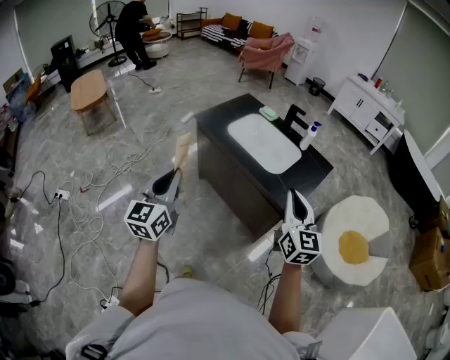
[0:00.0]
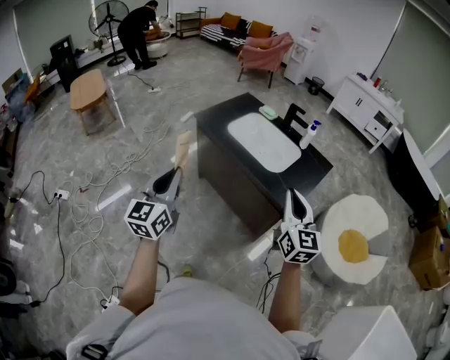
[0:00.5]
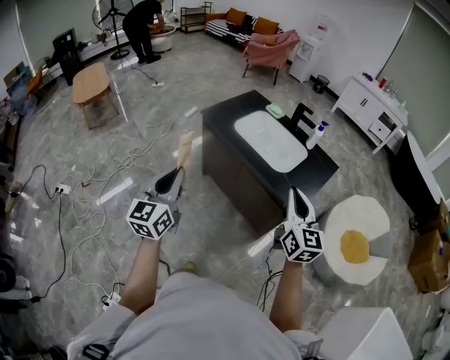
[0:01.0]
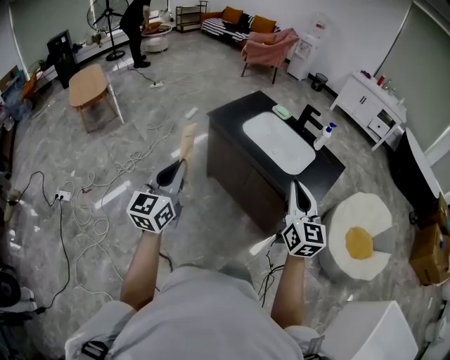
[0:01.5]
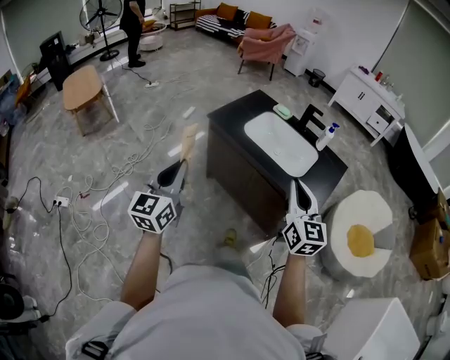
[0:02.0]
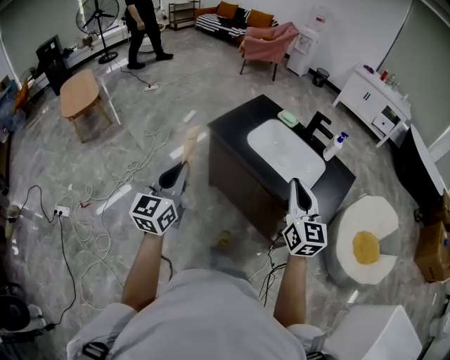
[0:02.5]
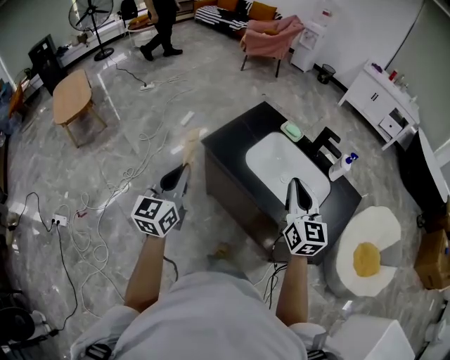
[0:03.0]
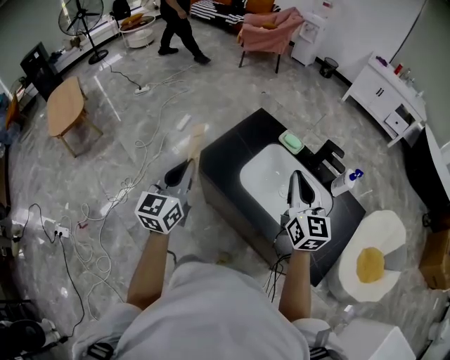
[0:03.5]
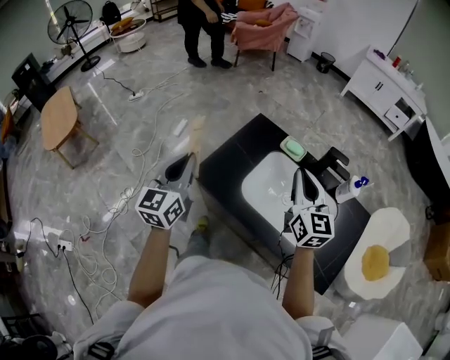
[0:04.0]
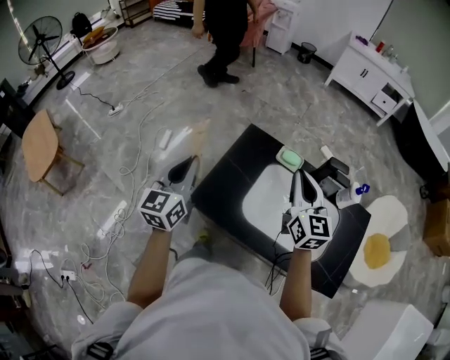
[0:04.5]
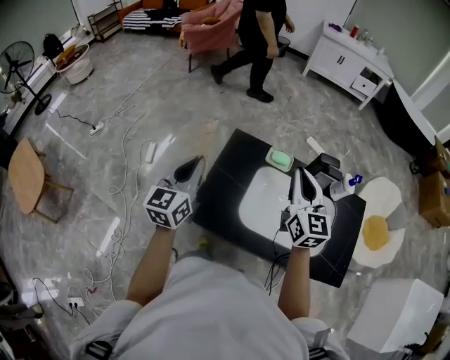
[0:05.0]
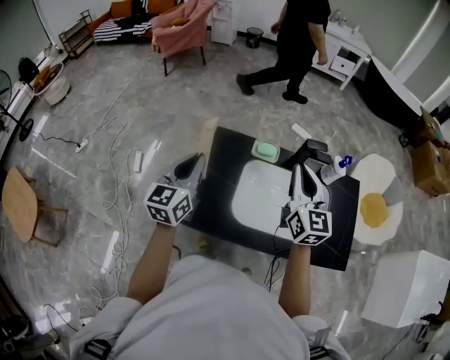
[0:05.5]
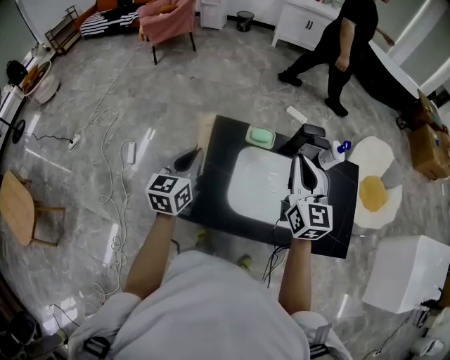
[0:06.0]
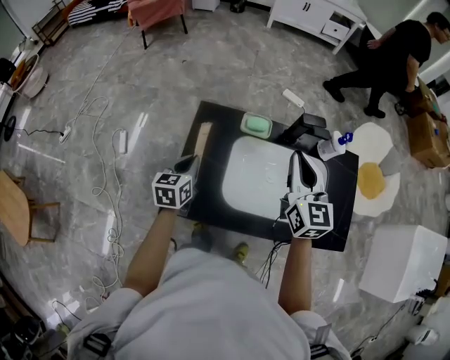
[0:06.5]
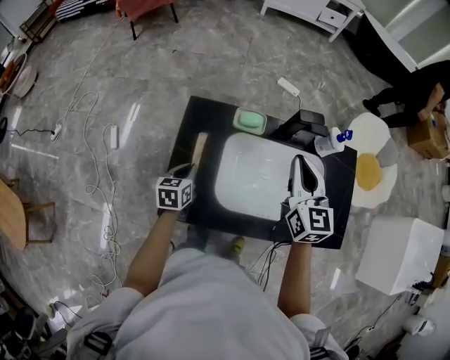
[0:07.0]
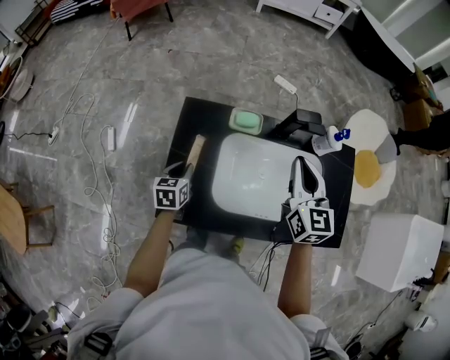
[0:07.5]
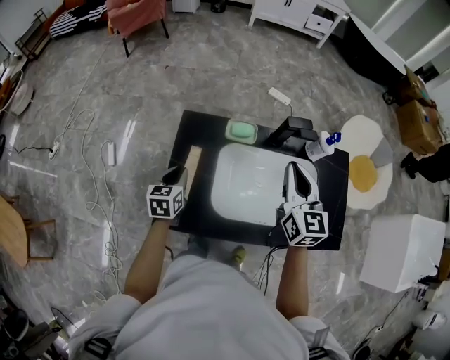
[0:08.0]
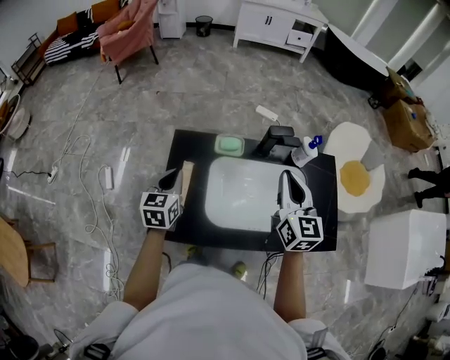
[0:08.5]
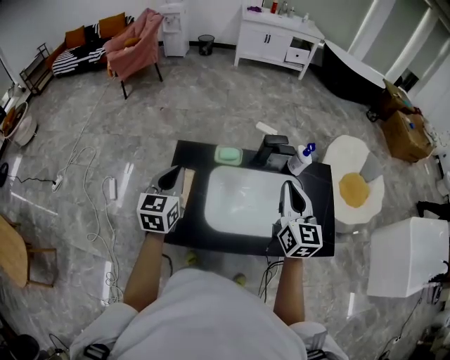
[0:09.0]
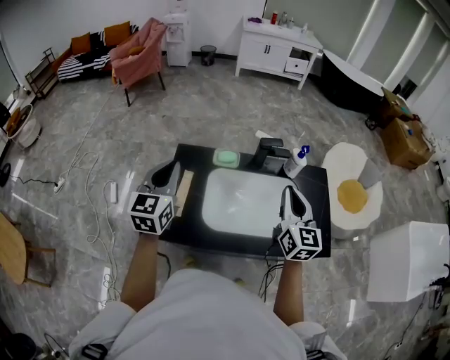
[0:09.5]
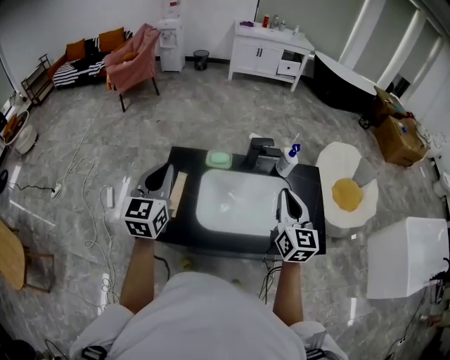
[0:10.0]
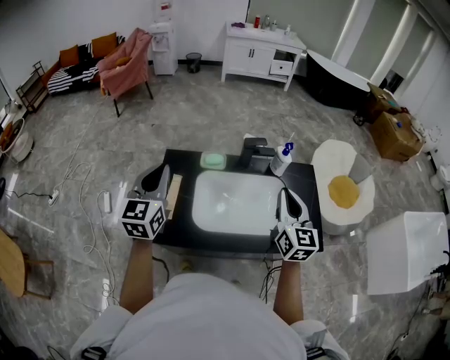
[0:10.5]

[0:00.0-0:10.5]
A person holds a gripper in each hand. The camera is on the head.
0.0 to 2.0 s: The two grippers go about 15 cm to the left and forward.
2.0 to 4.0 s: The two grippers travel together, forward, approximately 50 cm.
4.0 to 6.5 s: The left gripper changes place by approximately 35 cm, and changes its angle by approximately 40 degrees. Meanwhile the right gripper moves some 10 cm, and turns by approximately 30 degrees.
6.5 to 8.5 s: The left gripper is displaced upward by some 5 cm; the right gripper goes some 5 cm to the right.
8.5 to 10.5 s: The right gripper moves backward and to the right, approximately 15 cm. Meanwhile the left gripper goes about 20 cm upward and backward, and turns by approximately 20 degrees.

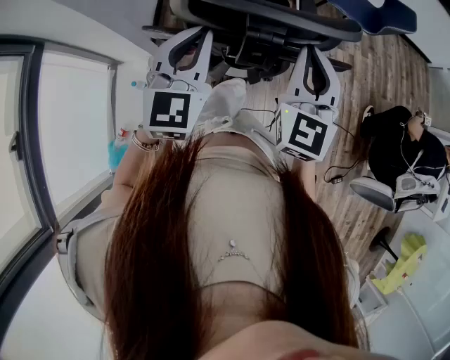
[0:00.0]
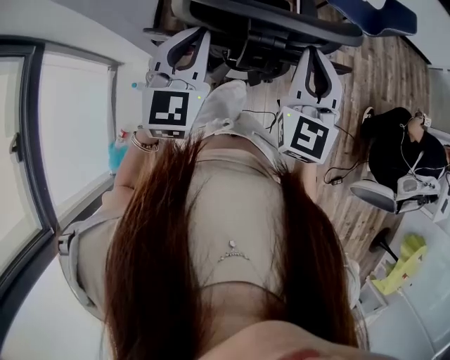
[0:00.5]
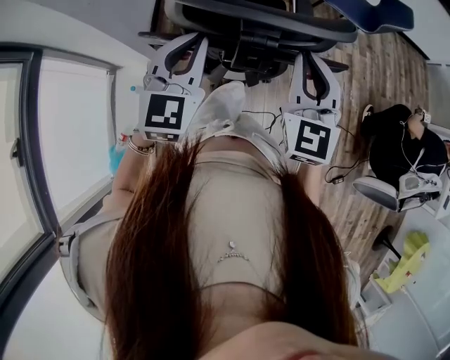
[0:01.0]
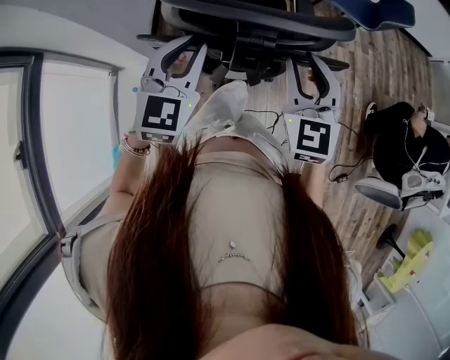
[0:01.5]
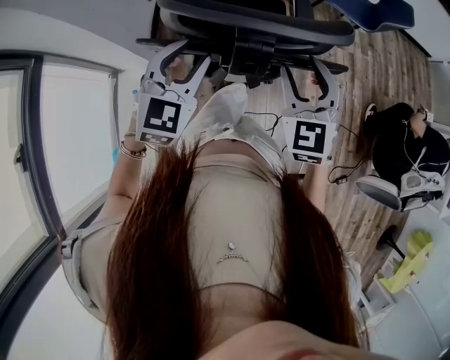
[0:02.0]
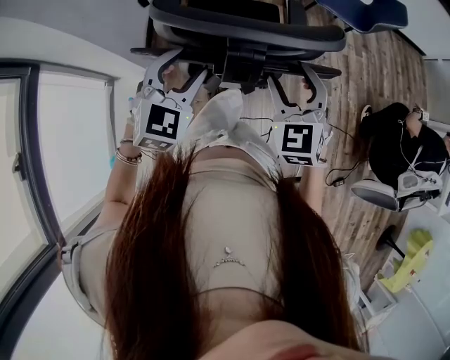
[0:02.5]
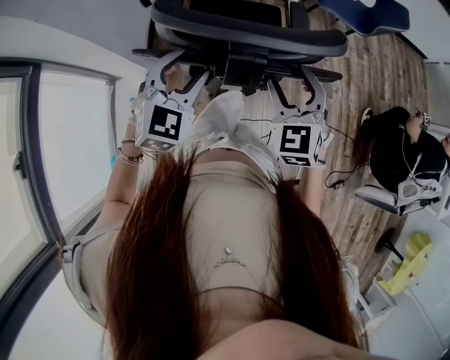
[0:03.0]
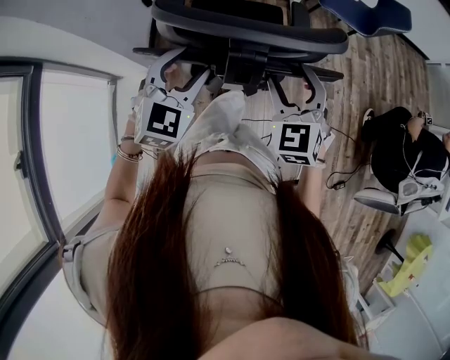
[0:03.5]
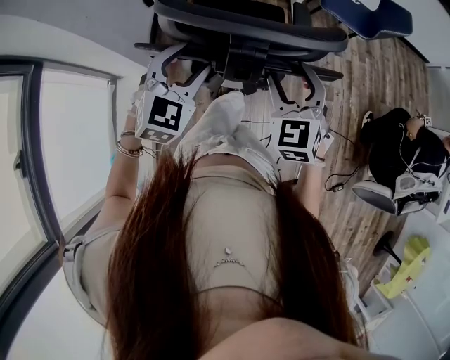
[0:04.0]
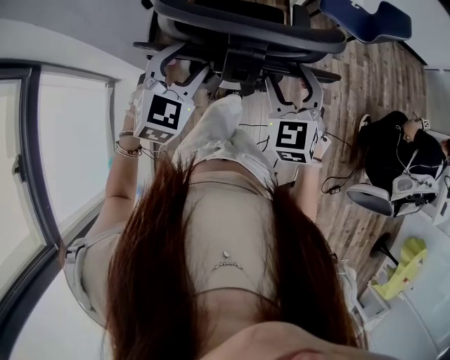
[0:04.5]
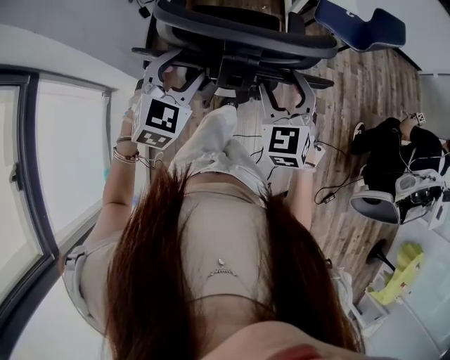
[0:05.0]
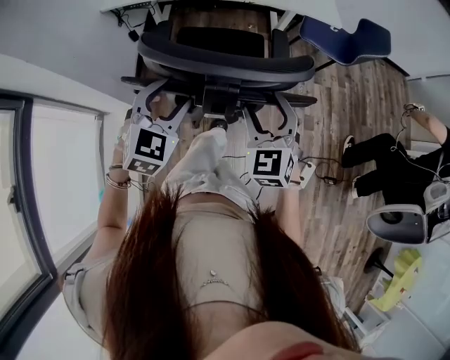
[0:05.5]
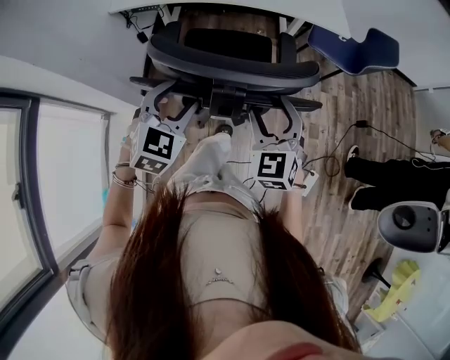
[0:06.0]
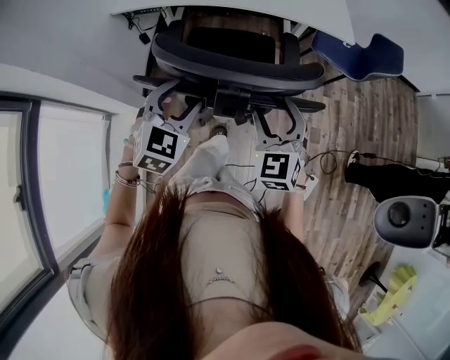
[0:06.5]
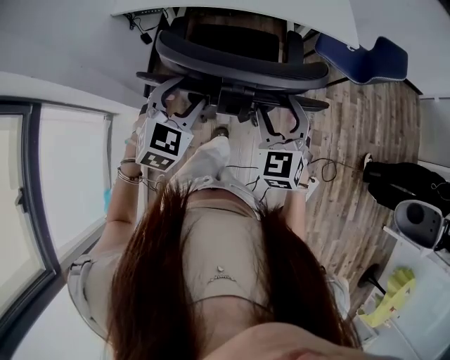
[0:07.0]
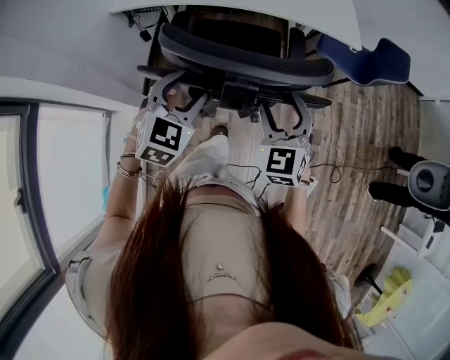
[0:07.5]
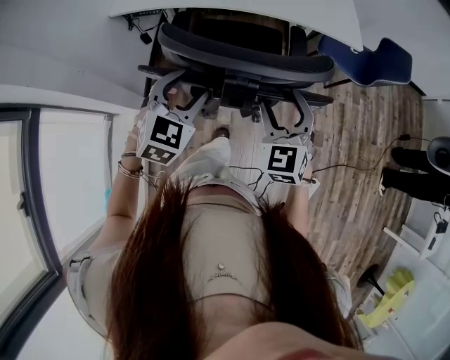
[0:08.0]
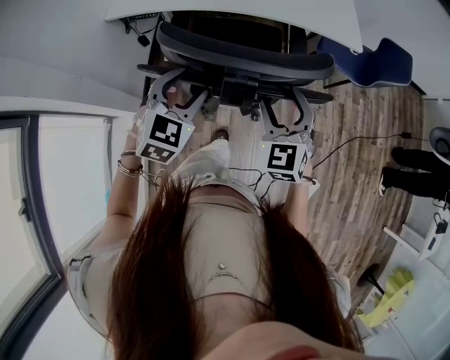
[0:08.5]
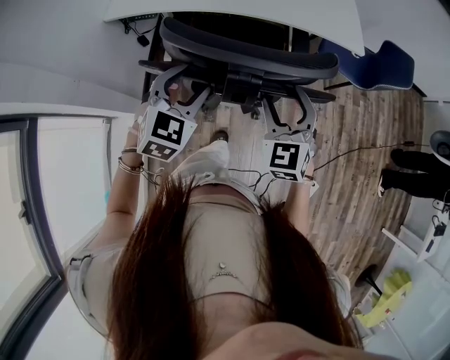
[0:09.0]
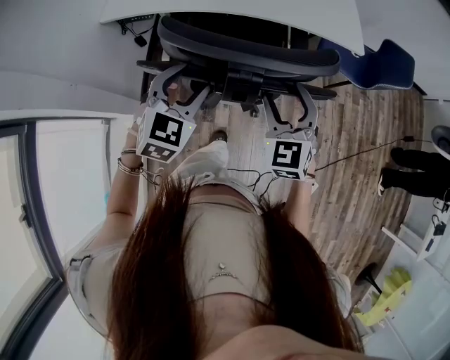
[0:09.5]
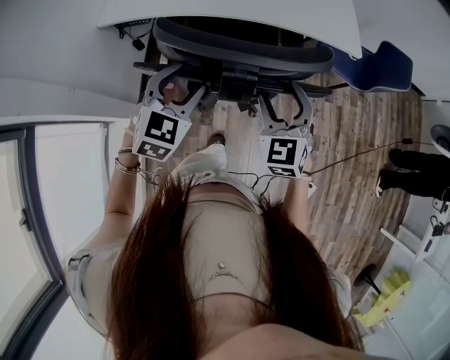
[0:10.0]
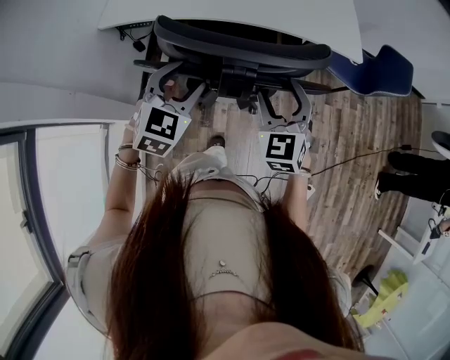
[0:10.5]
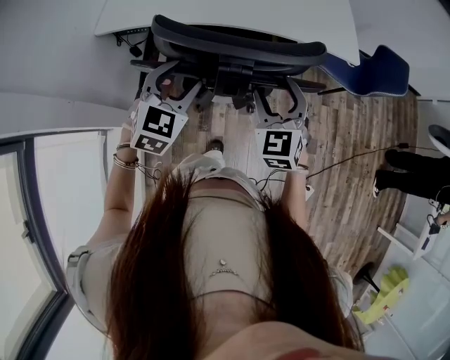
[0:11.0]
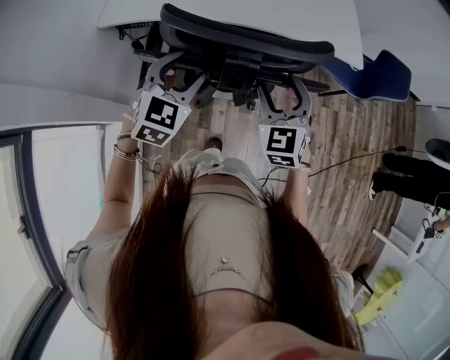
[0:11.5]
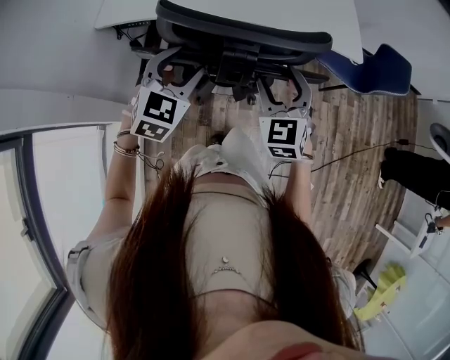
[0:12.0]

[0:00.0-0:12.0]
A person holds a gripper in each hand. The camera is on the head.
0.0 to 2.0 s: The right gripper heads downward, covering about 5 cm, rotates about 20 degrees, and opens, while the left gripper opens.
2.0 to 4.0 s: The grippers stay close to where they were, moving slightly.
4.0 to 6.0 s: Both grippers move forward, some 10 cm.
6.0 to 8.0 s: Both grippers travel together forward, about 10 cm.
8.0 to 10.0 s: The grippers both shift forward by some 10 cm.
10.0 to 12.0 s: Both grippers travel together forward, some 5 cm.

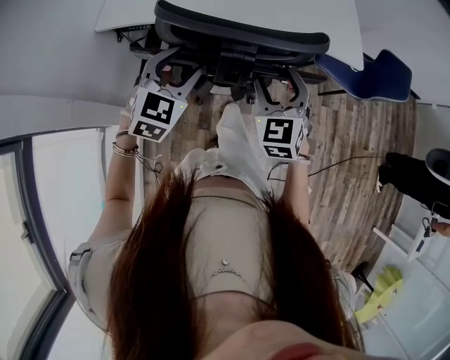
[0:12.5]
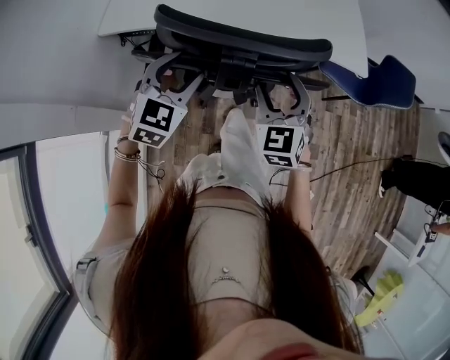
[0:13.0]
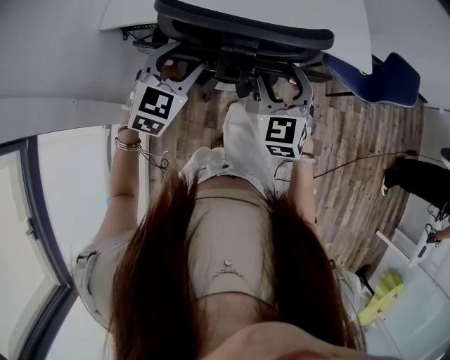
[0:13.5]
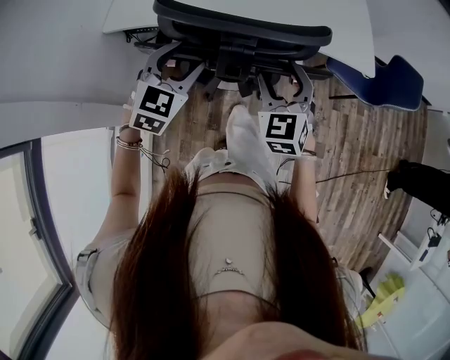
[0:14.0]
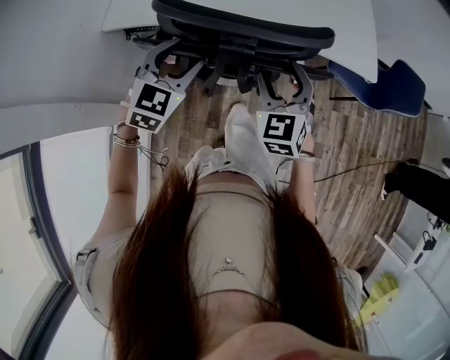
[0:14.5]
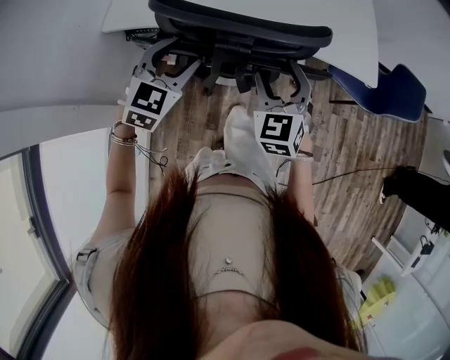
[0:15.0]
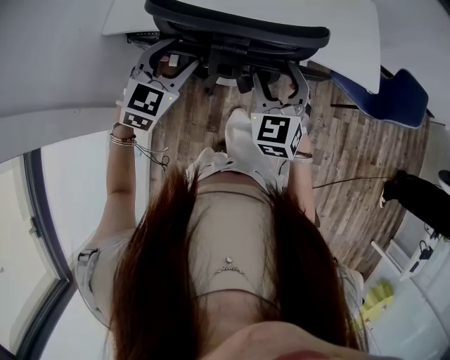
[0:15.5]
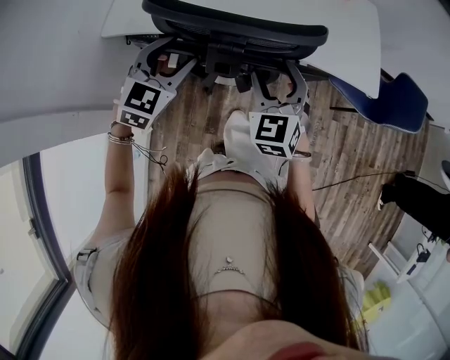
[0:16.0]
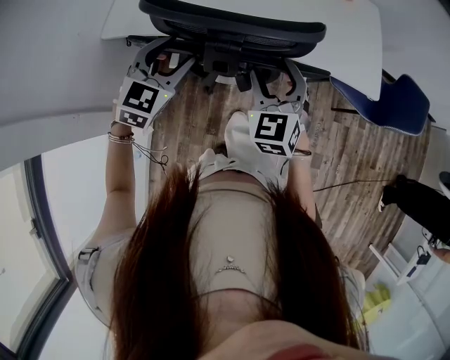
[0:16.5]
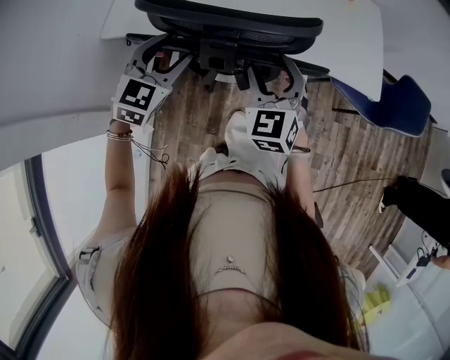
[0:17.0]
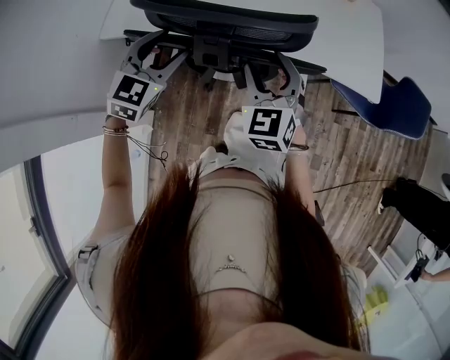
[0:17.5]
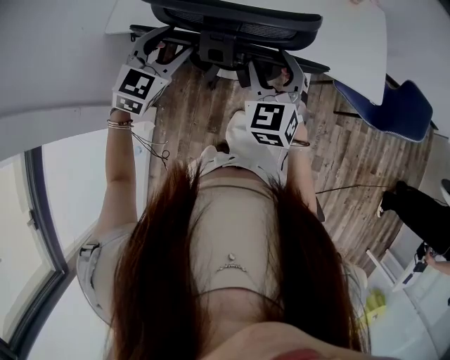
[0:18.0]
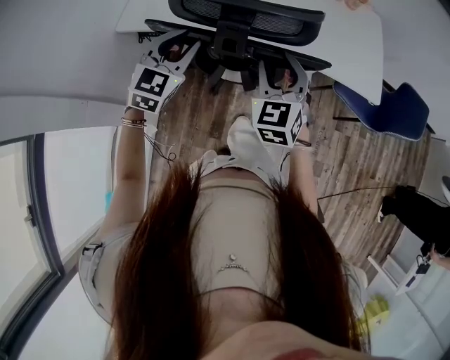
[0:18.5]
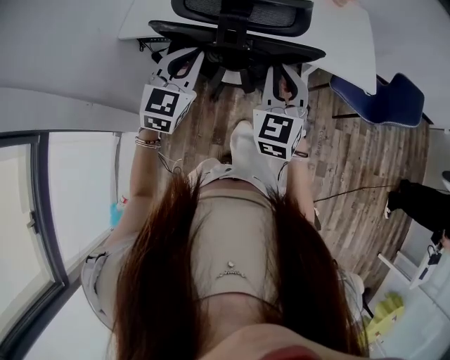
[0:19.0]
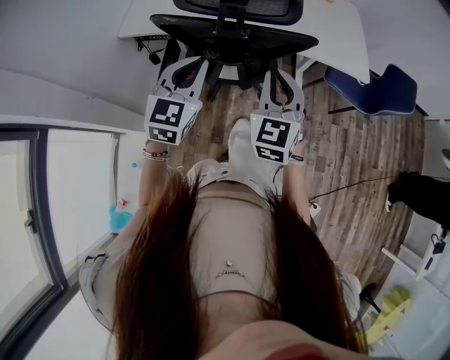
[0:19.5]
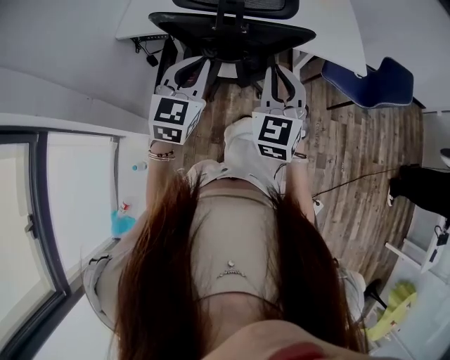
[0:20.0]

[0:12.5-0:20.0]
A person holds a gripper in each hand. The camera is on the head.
12.5 to 14.5 s: The two grippers go some 5 cm forward.
14.5 to 16.5 s: Both grippers move forward, approximately 5 cm.
16.5 to 18.0 s: The grippers move only a little.
18.0 to 20.0 s: The two grippers go about 15 cm backward. The right gripper closes its fingers, while the left gripper closes up.
